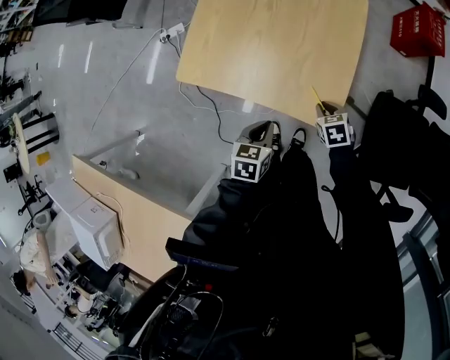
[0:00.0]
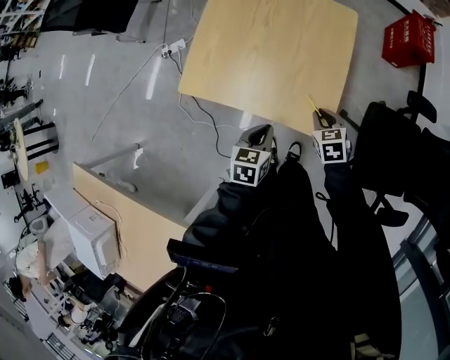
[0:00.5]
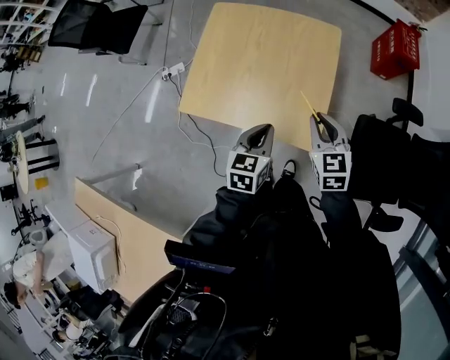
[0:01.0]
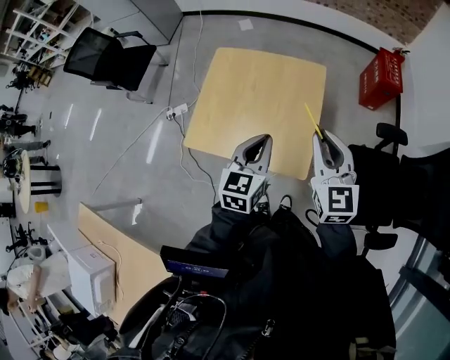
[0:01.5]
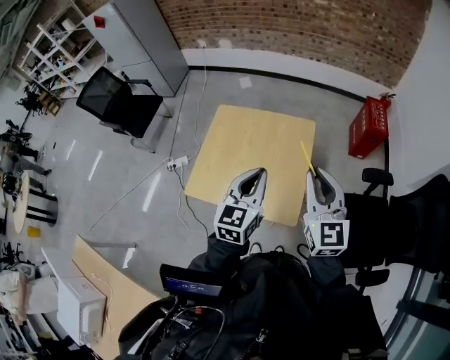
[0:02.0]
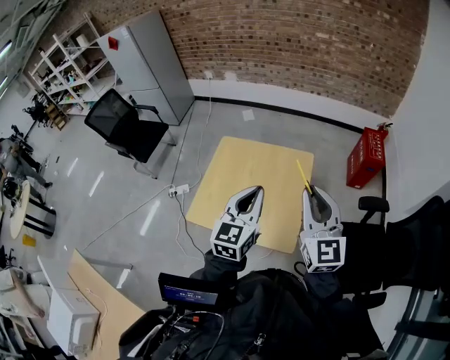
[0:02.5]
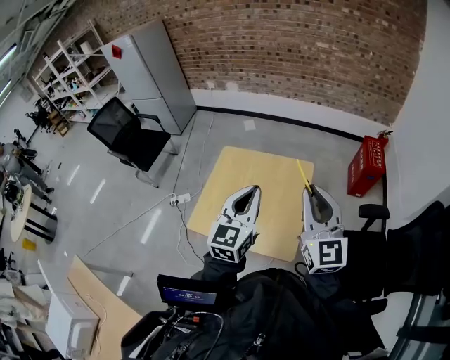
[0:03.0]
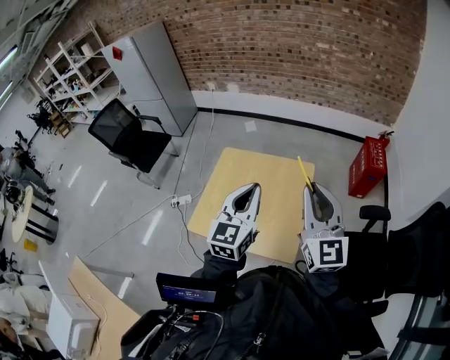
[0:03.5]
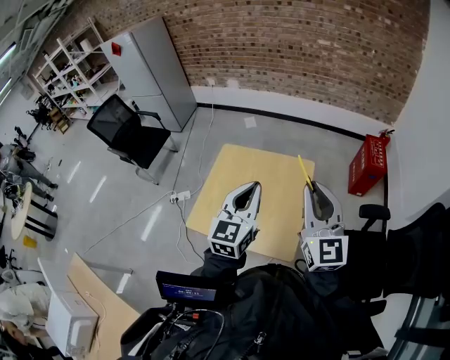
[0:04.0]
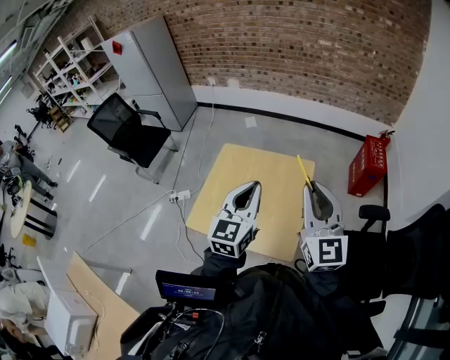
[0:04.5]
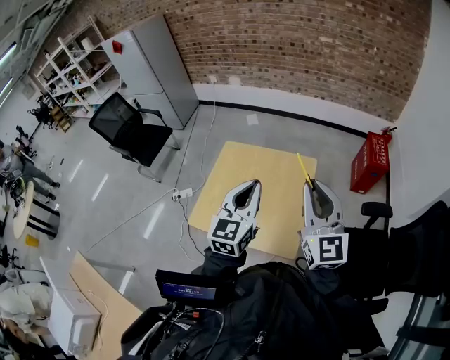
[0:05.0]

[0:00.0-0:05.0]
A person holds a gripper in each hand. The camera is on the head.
0:00.0 to 0:02.5: The two grippers go about 50 cm upward. The left gripper tilts its fingers approximately 40 degrees upward; the right gripper tilts its fingers about 70 degrees upward.
0:02.5 to 0:05.0: There are only small adjustments of the grippers.

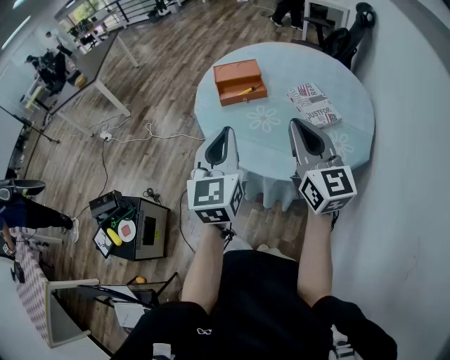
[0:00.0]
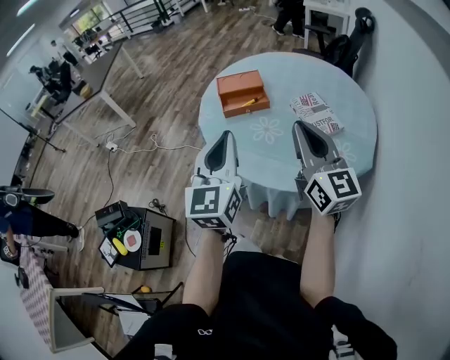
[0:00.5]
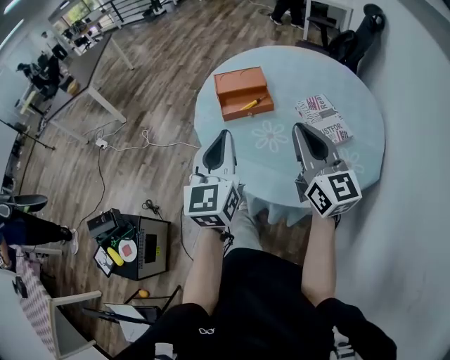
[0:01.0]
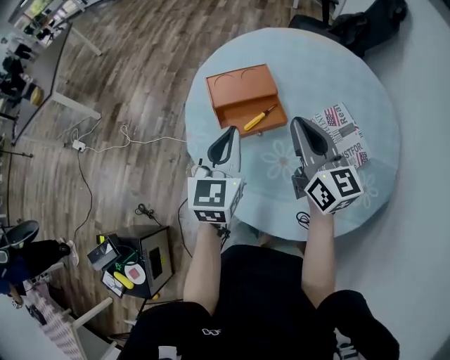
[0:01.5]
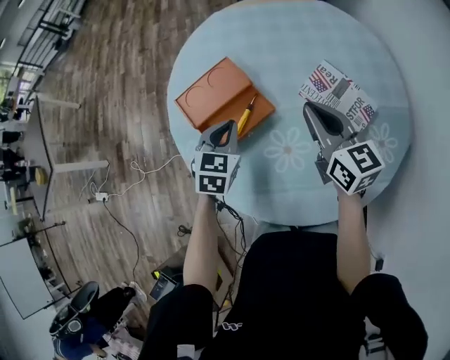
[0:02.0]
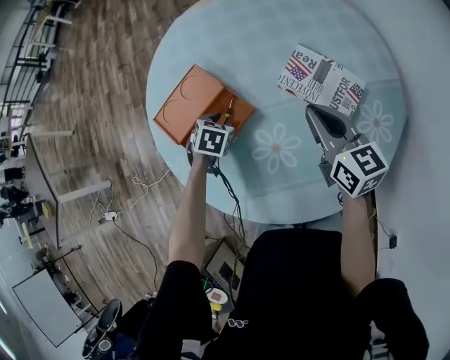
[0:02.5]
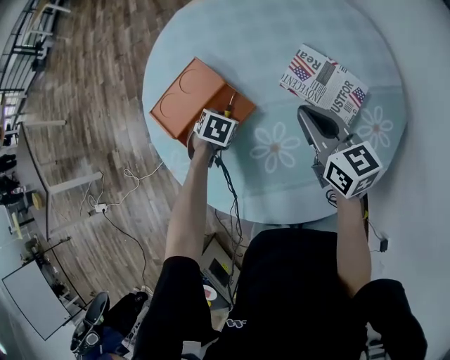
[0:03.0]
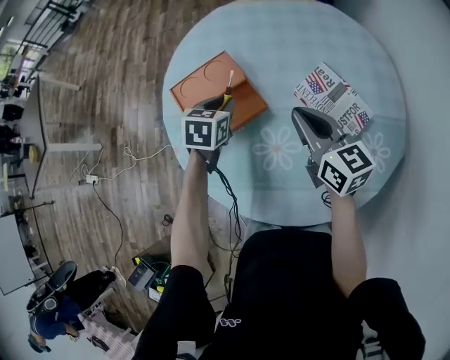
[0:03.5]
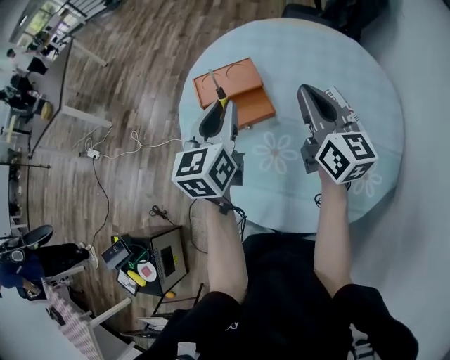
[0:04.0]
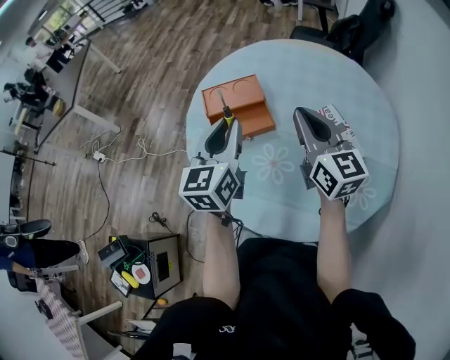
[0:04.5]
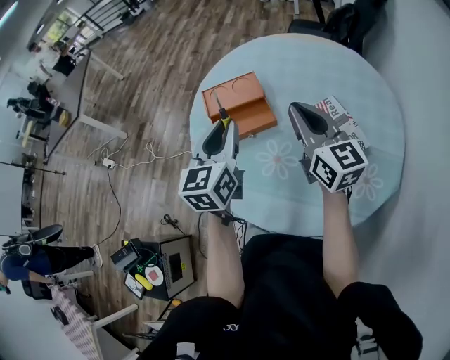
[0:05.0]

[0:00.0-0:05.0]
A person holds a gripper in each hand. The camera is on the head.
0:00.0 to 0:02.5: The left gripper shifts by some 60 cm, angles its fingers downward, by about 60 degrees, and opens up; the right gripper ends up roughly 40 cm from where it was, and turns by some 40 degrees.
0:02.5 to 0:05.0: The left gripper heads upward, covering some 30 cm, and angles its fingers upward, by some 60 degrees, while the right gripper shifts approximately 10 cm upward, and changes its angle by approximately 30 degrees.

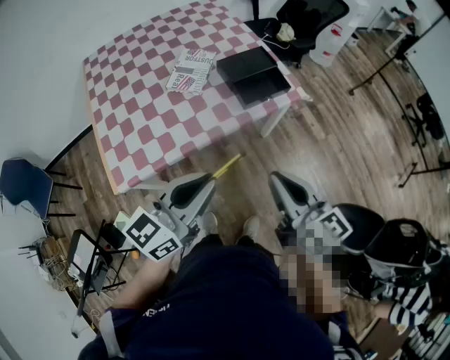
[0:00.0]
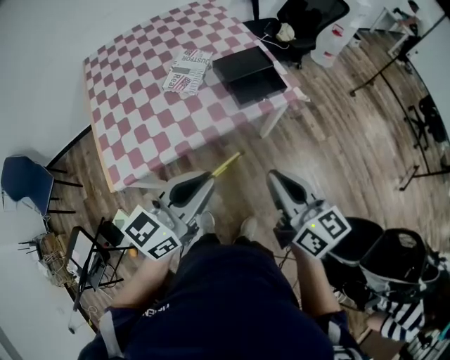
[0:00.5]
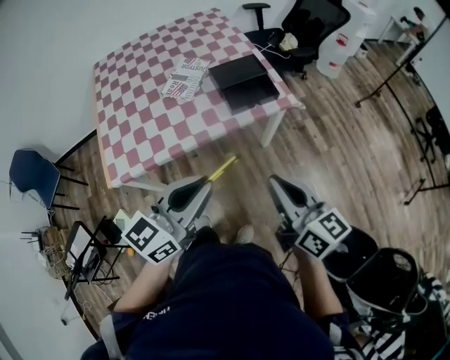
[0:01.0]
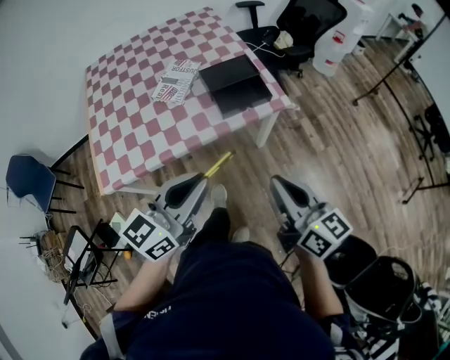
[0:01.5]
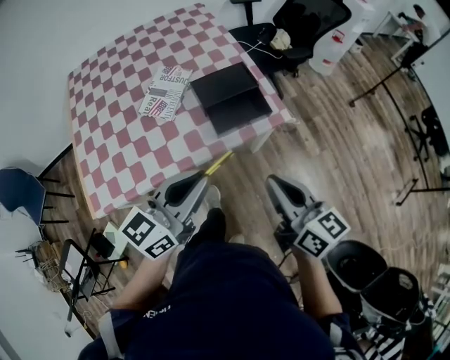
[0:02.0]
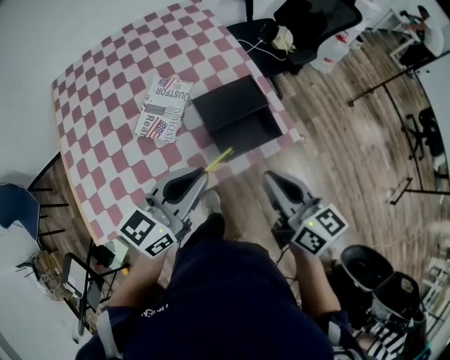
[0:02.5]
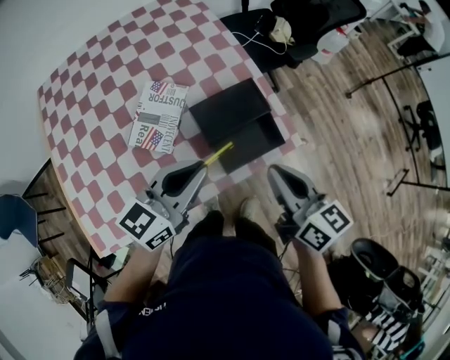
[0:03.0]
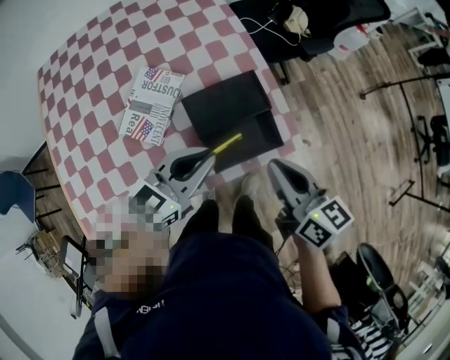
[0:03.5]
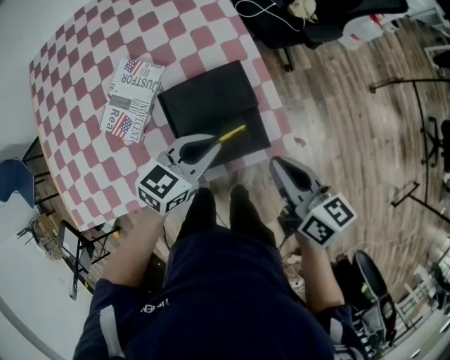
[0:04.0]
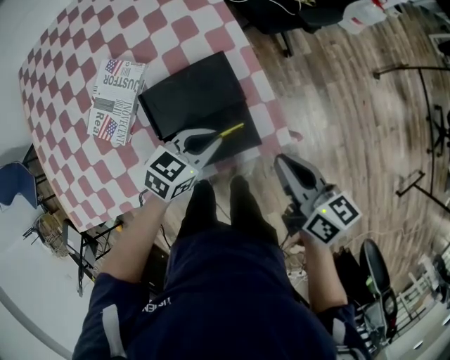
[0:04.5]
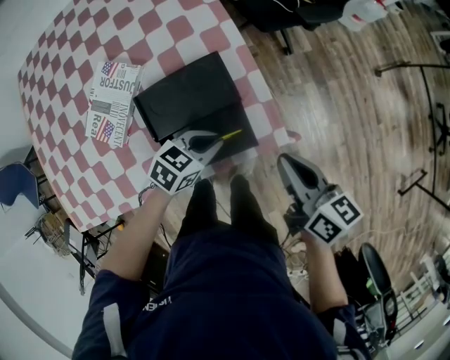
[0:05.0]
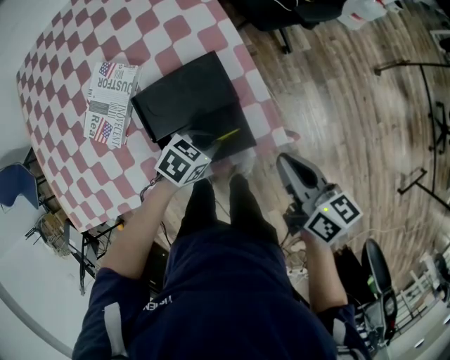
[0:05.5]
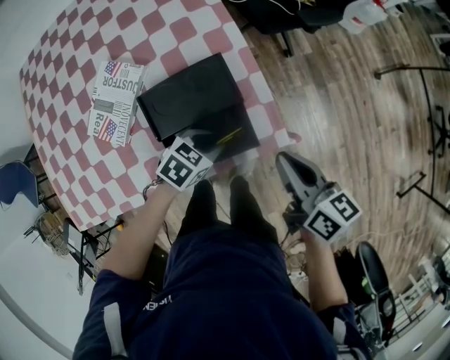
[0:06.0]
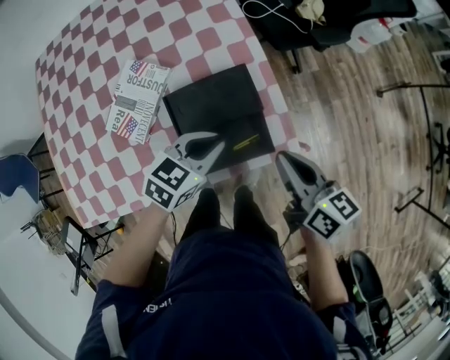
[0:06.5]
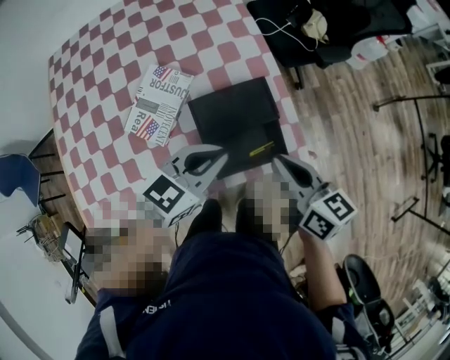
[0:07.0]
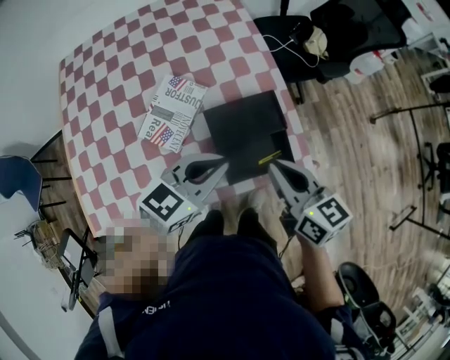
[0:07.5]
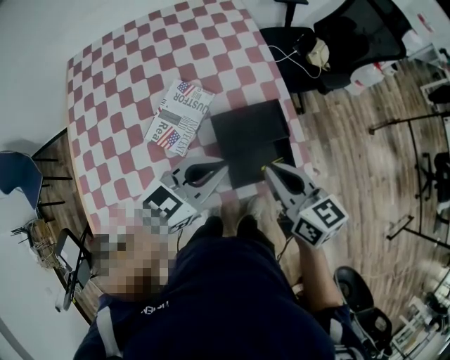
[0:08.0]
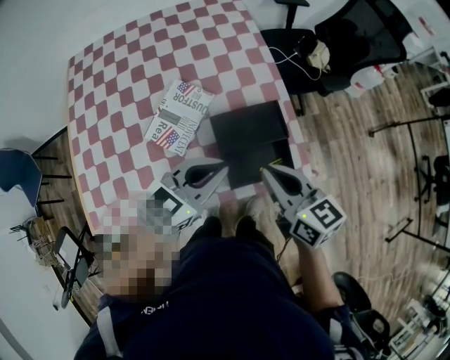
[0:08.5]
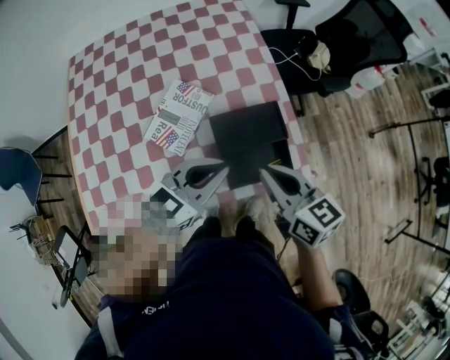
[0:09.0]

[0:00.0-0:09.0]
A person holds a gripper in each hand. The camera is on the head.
0:00.0 to 0:02.0: The grippers both shift forward and to the right by approximately 20 cm.
0:02.0 to 0:04.5: The two grippers go roughly 35 cm forward and downward. The right gripper changes its angle by roughly 20 degrees, while the left gripper tips its fingers downward by about 30 degrees.
0:04.5 to 0:07.0: The left gripper moves upward and to the left, roughly 15 cm, and opens, then closes once more, while the right gripper shifts about 10 cm to the left and upward.
0:07.0 to 0:09.0: The right gripper is displaced to the left by about 5 cm. The left gripper is displaced upward by approximately 5 cm.

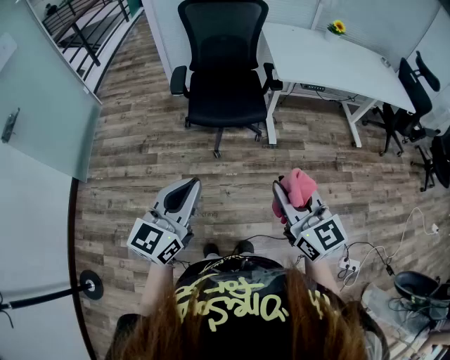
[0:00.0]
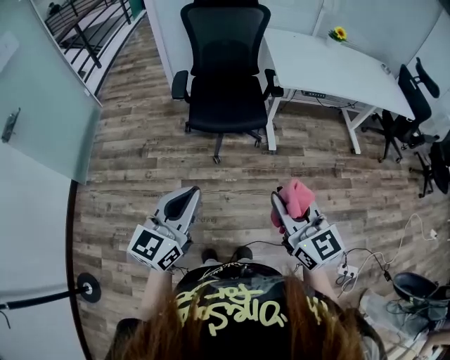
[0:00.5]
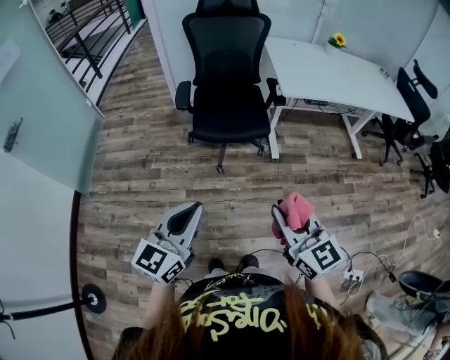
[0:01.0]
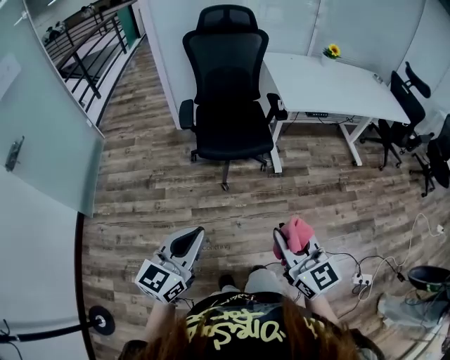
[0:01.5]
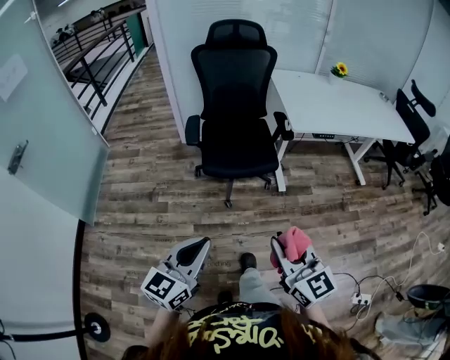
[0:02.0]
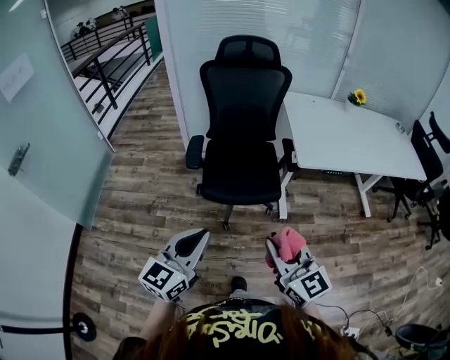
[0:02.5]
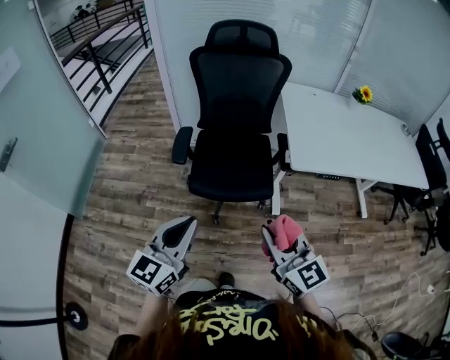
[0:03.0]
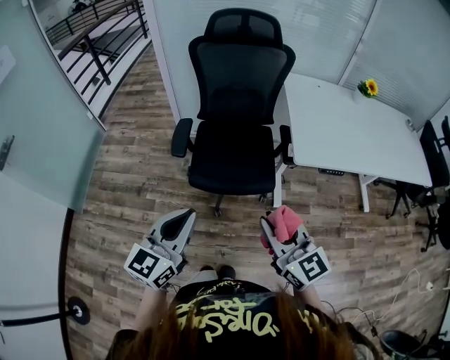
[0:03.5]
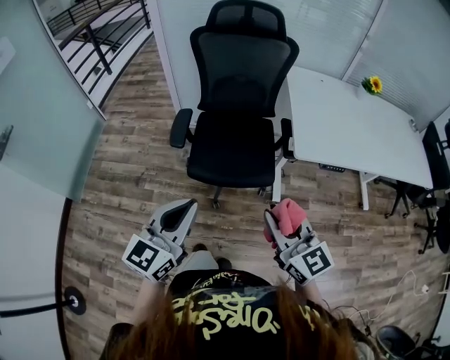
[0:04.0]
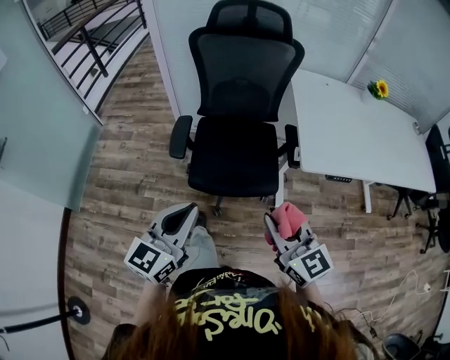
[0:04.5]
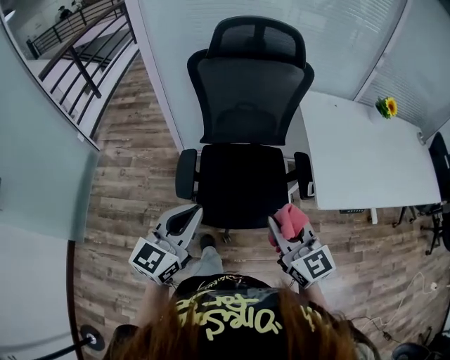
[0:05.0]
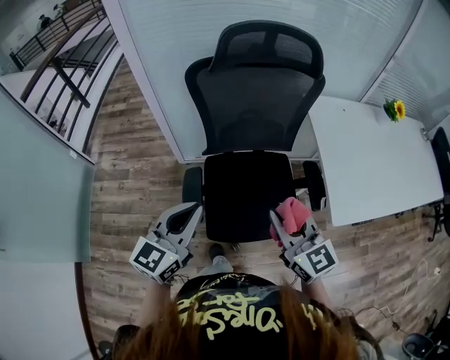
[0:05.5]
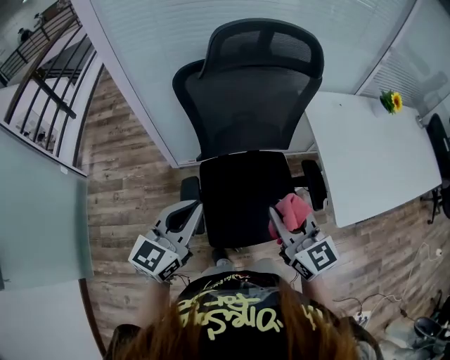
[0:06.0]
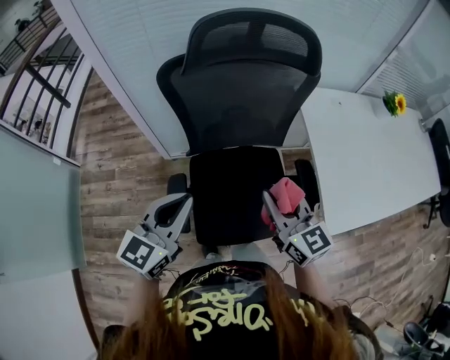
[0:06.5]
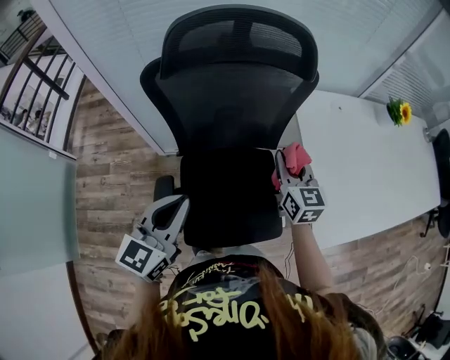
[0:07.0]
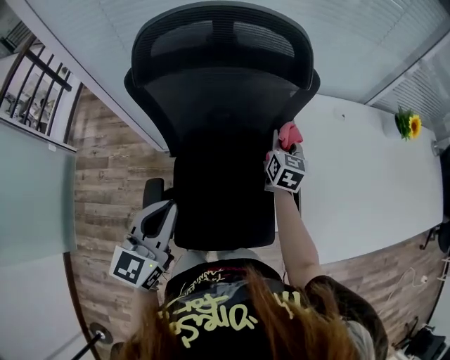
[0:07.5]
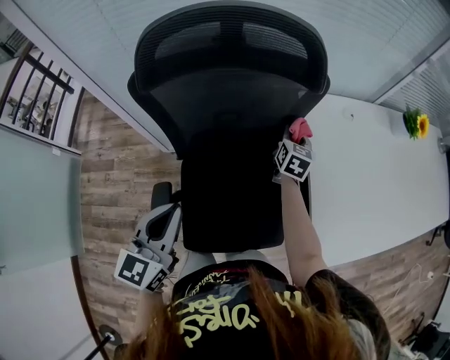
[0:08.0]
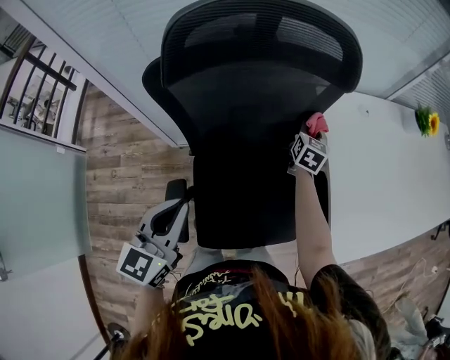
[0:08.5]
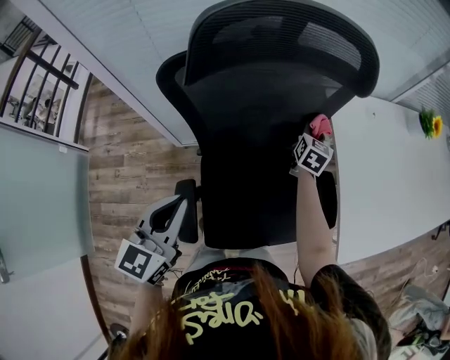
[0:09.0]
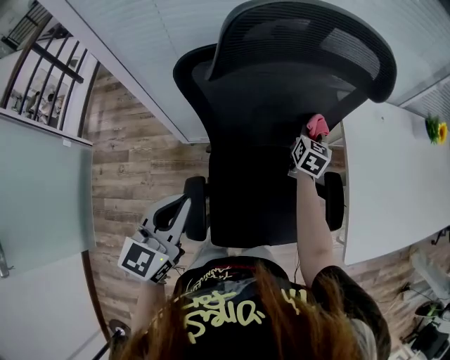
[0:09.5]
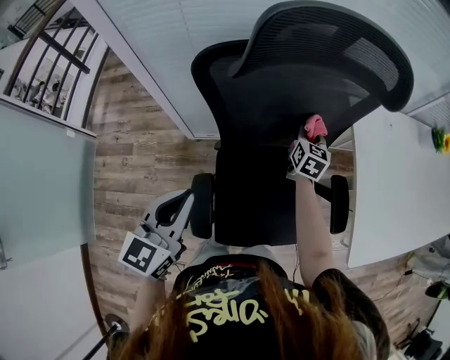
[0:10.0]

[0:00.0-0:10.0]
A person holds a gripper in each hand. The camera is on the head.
0:00.0 to 0:02.0: The two grippers go roughly 10 cm to the left.
0:02.0 to 0:04.0: Both grippers move forward, about 25 cm.
0:04.0 to 0:06.0: The left gripper is displaced forward by some 40 cm. Meanwhile the right gripper heads forward and to the left, covering roughly 40 cm.
0:06.0 to 0:08.0: The left gripper heads forward and to the right, covering some 15 cm, while the right gripper travels forward and downward by roughly 40 cm, and changes its angle by some 40 degrees.
0:08.0 to 0:10.0: The two grippers go some 15 cm to the left.
